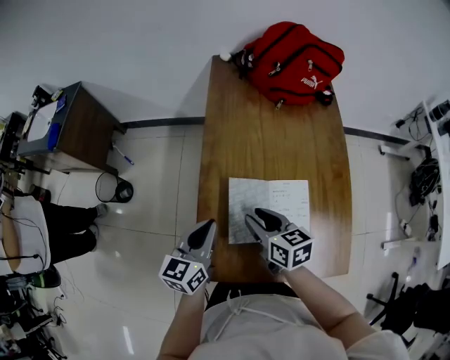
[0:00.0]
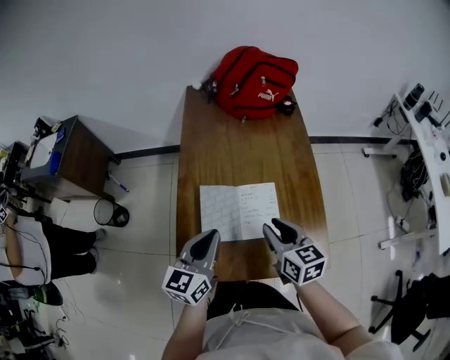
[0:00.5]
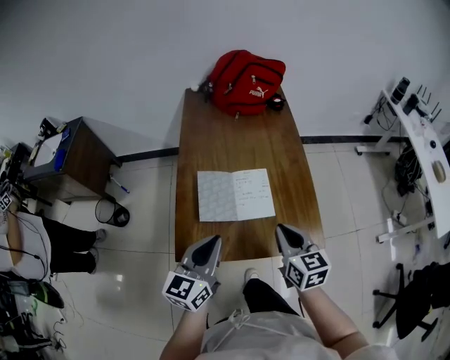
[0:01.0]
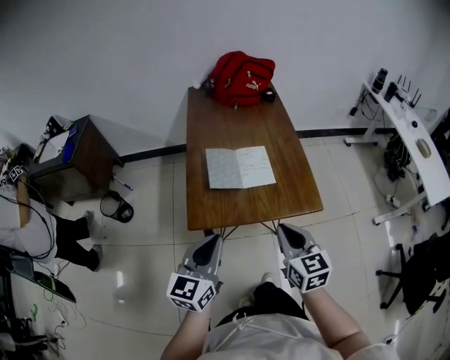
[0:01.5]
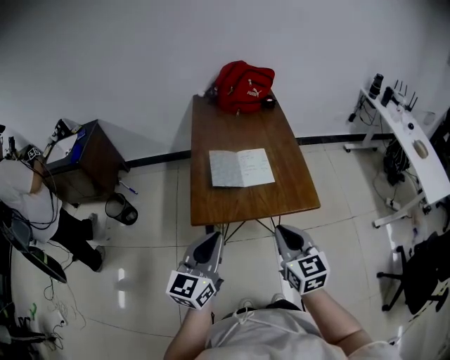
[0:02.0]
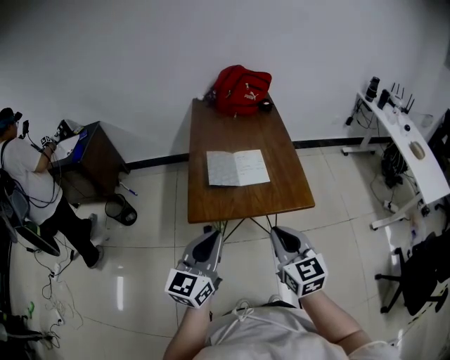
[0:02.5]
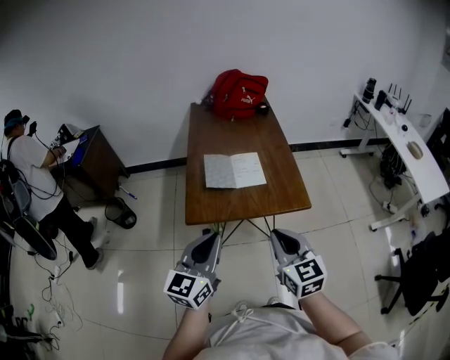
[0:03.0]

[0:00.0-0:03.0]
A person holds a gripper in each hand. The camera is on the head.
0:00.0 to 0:01.5: The left gripper is displaced backward by approximately 30 cm, while the right gripper heads backward and to the right, covering some 35 cm, swivels roughly 30 degrees, and closes.
0:01.5 to 0:03.0: Both grippers move backward, some 10 cm.

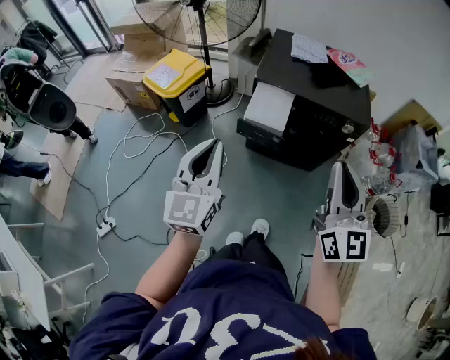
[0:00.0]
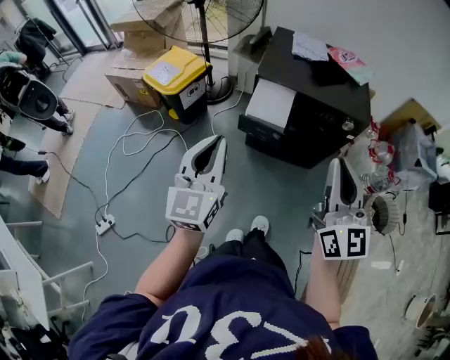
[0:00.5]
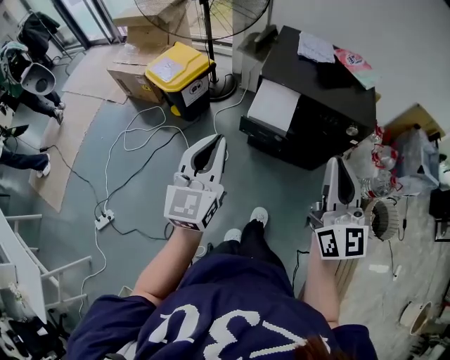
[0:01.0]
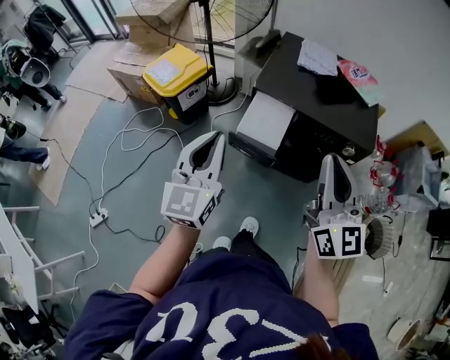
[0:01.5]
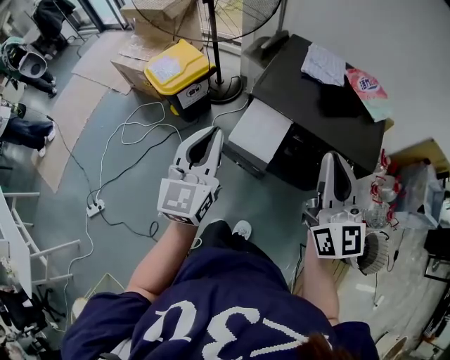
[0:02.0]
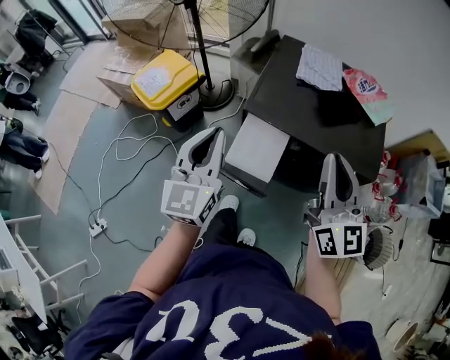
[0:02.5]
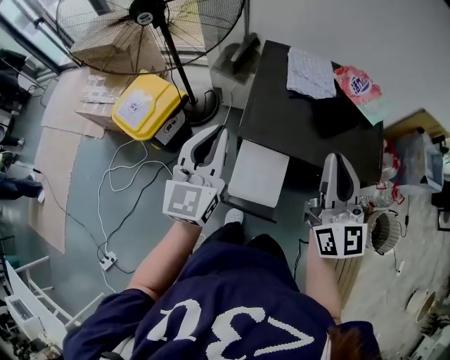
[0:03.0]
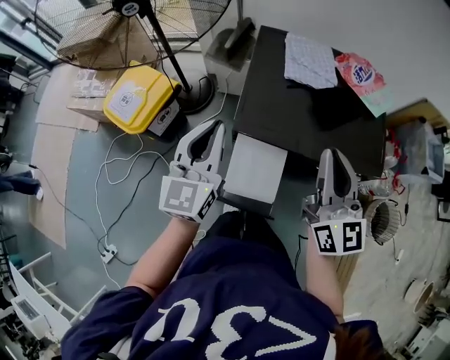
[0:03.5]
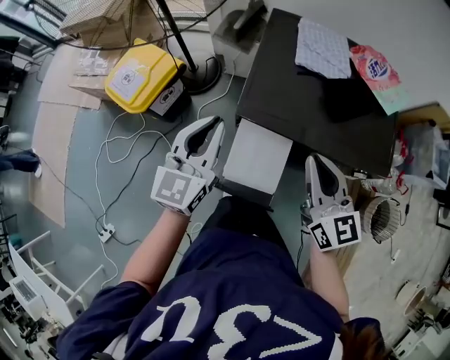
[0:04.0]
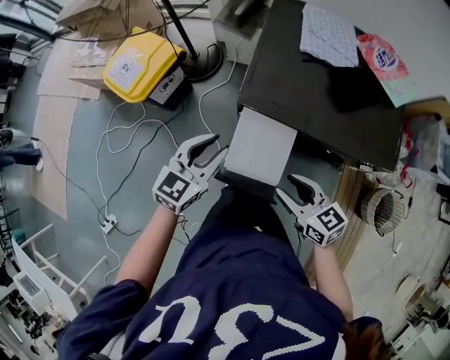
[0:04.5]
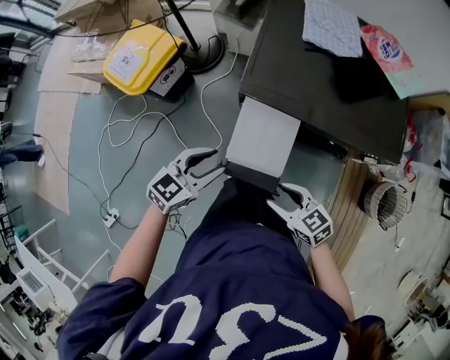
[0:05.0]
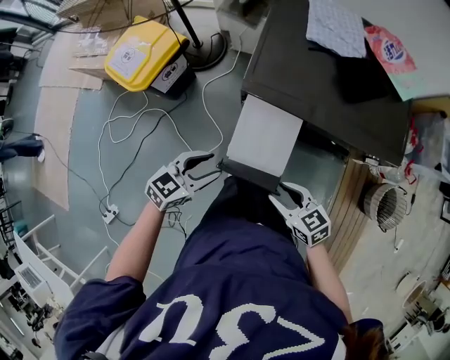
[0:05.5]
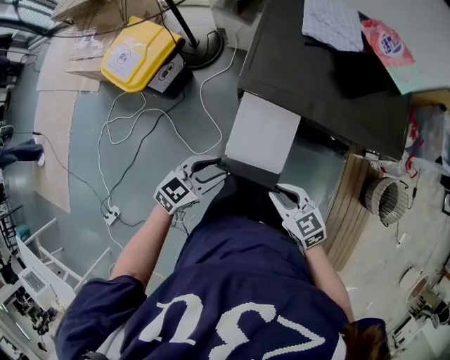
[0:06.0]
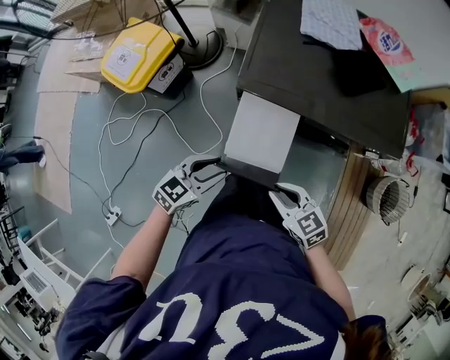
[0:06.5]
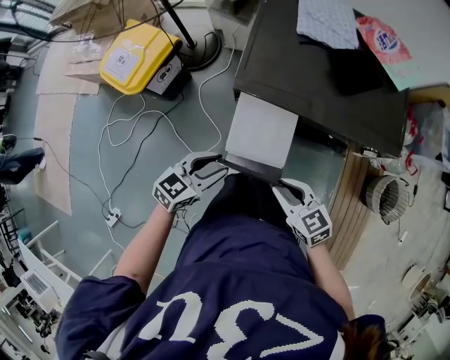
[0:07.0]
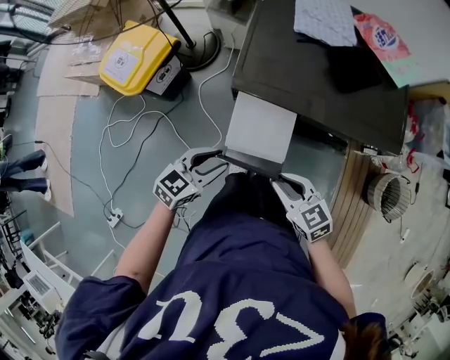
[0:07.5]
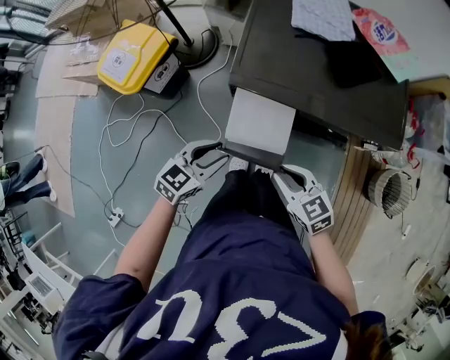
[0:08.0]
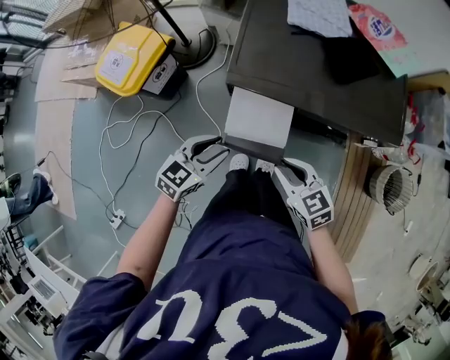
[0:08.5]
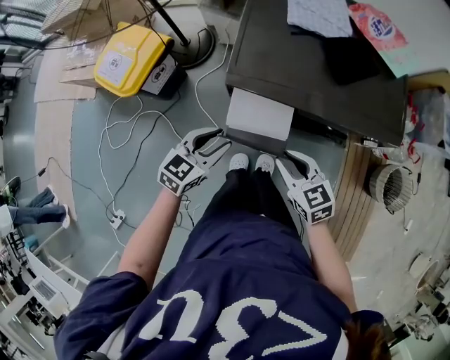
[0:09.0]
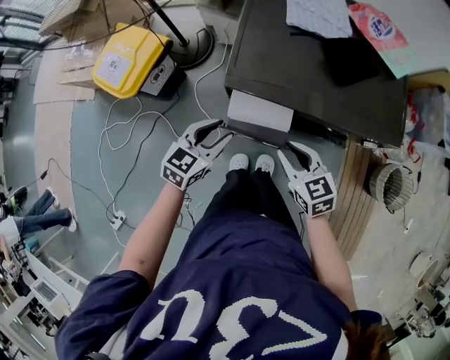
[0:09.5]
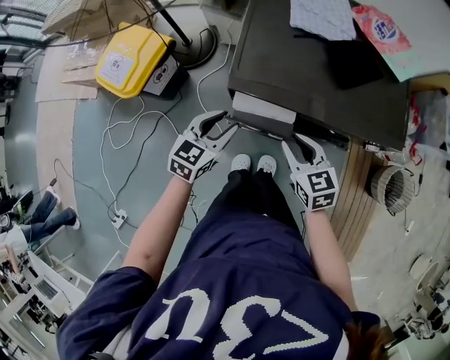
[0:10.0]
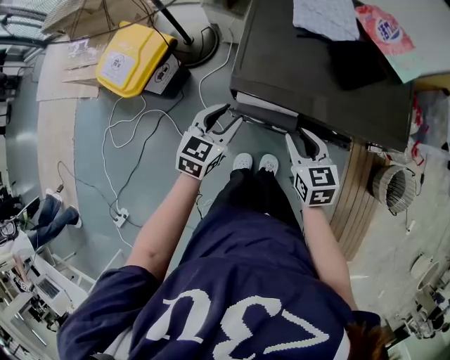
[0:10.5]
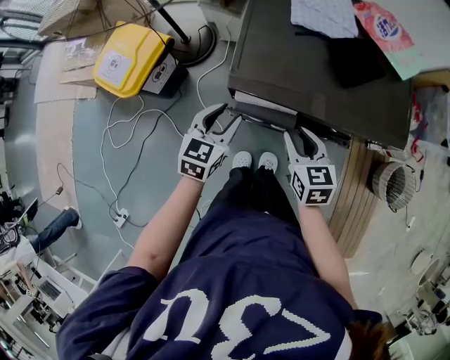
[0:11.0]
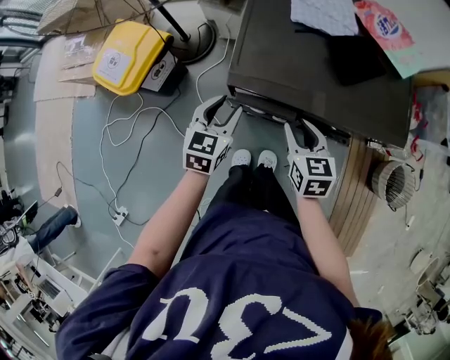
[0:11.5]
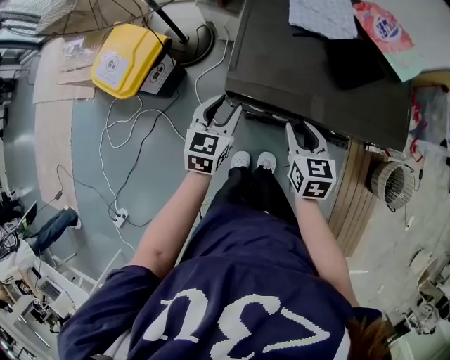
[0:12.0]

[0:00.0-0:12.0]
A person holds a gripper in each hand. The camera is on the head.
0:00.0 to 0:02.0: The right gripper shifts some 25 cm forward. Meanwhile the left gripper moves forward and to the right, roughly 20 cm.
0:02.0 to 0:04.0: The right gripper shifts roughly 25 cm forward and downward. The left gripper is displaced forward by some 25 cm, and changes its angle by some 20 degrees.
0:04.0 to 0:06.0: Both grippers travel together downward and backward, about 25 cm. The left gripper swivels about 40 degrees, and opens up; the right gripper rotates roughly 40 degrees, and opens, then closes again.
0:06.0 to 0:08.0: The right gripper ends up roughly 5 cm from where it was.
0:08.0 to 0:10.0: Both grippers travel together forward, some 10 cm.
0:10.0 to 0:12.0: Both grippers move forward, roughly 5 cm.

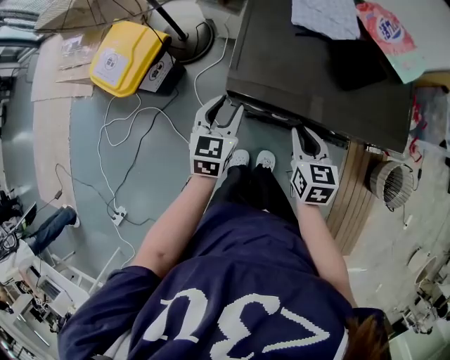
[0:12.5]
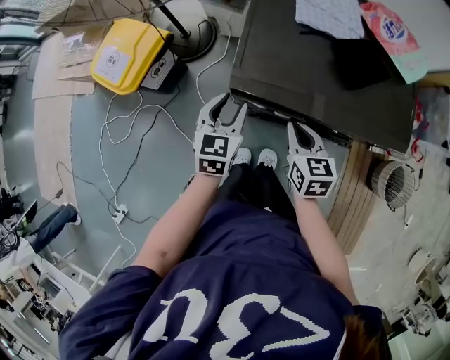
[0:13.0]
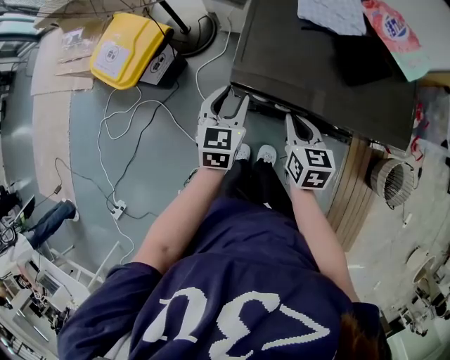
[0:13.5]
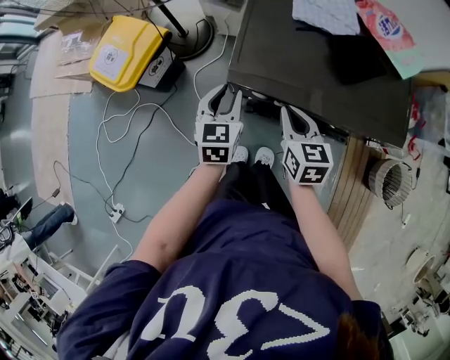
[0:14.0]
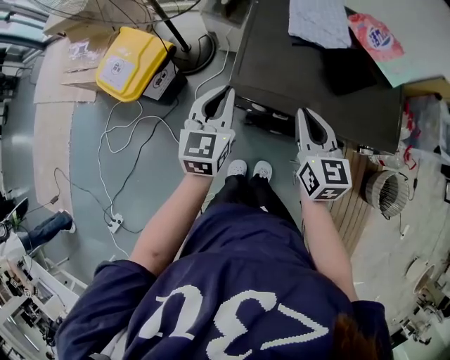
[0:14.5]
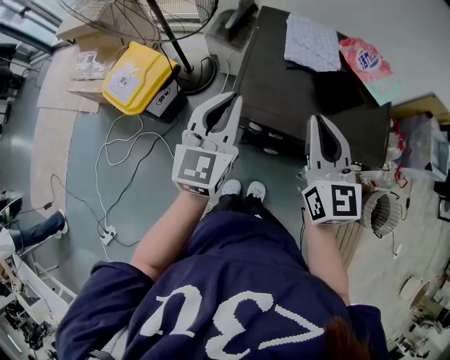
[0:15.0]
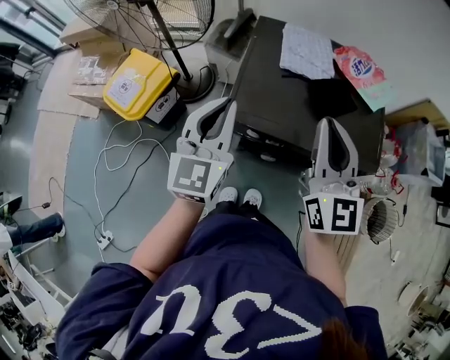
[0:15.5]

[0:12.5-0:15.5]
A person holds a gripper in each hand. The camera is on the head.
0:12.5 to 0:14.0: The right gripper shifts by about 5 cm.
0:14.0 to 0:15.5: The two grippers go roughly 30 cm upward. The right gripper tilts its fingers about 40 degrees upward; the left gripper turns by about 30 degrees, and closes its fingers.

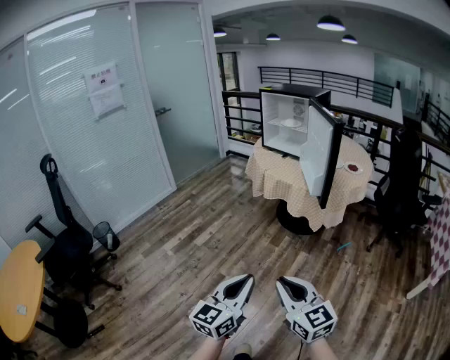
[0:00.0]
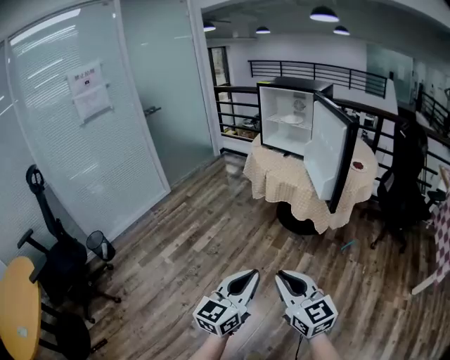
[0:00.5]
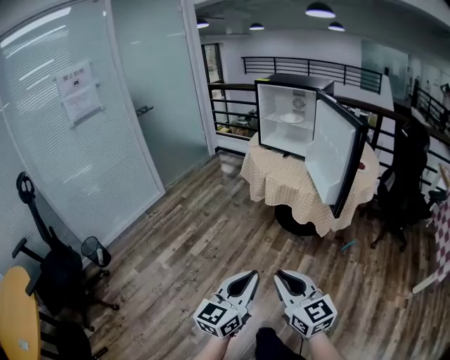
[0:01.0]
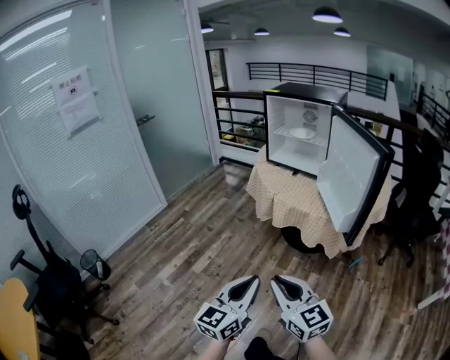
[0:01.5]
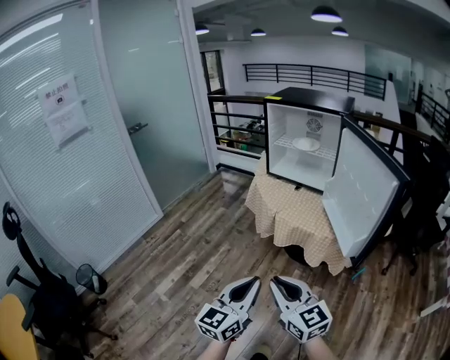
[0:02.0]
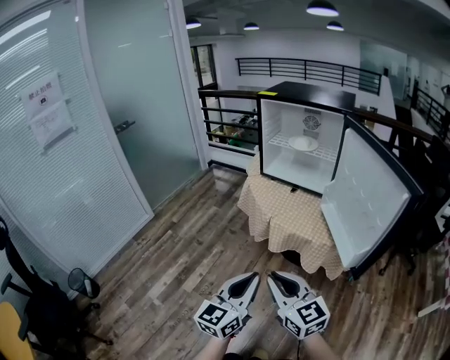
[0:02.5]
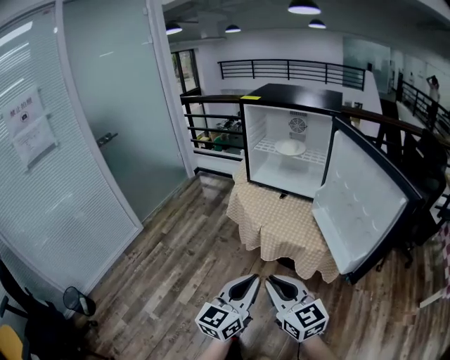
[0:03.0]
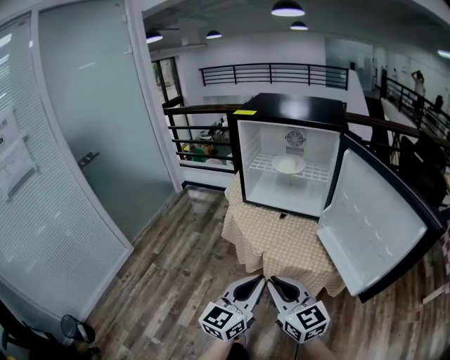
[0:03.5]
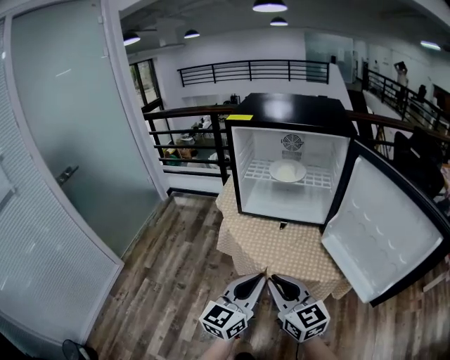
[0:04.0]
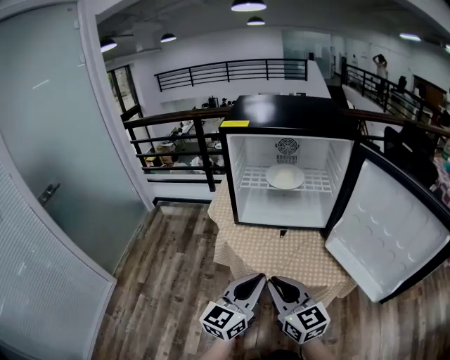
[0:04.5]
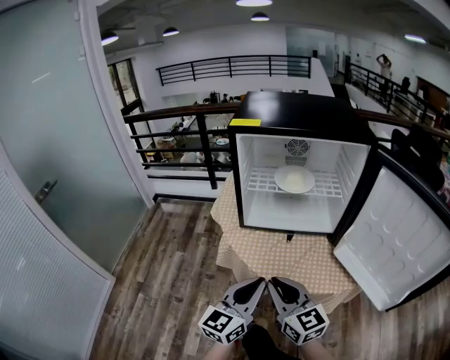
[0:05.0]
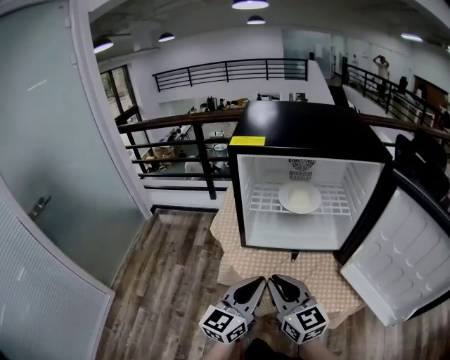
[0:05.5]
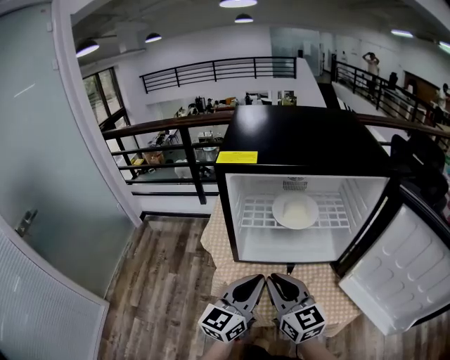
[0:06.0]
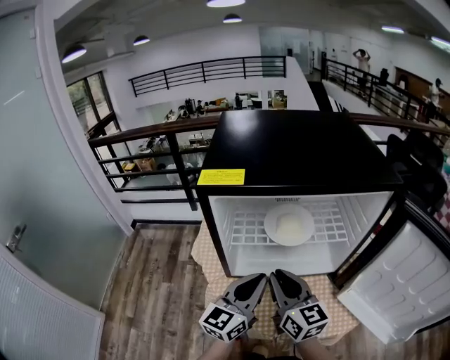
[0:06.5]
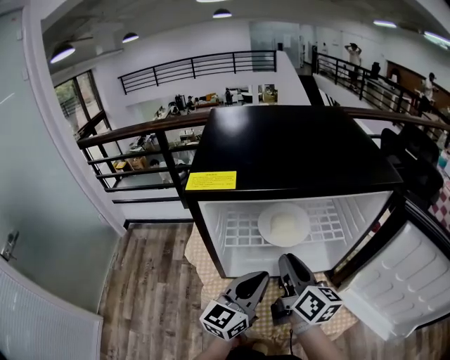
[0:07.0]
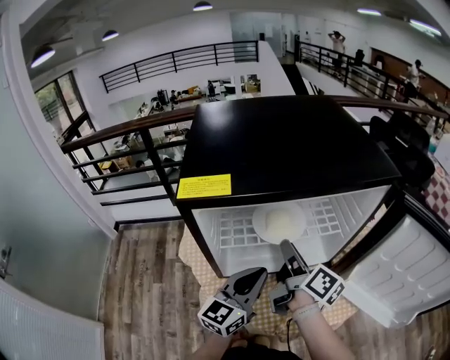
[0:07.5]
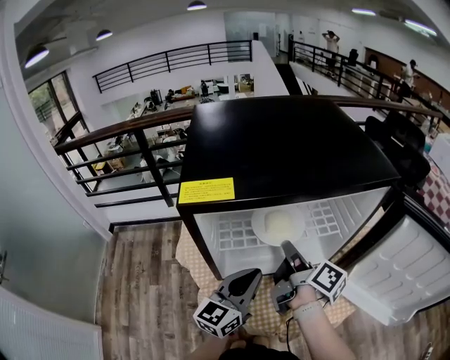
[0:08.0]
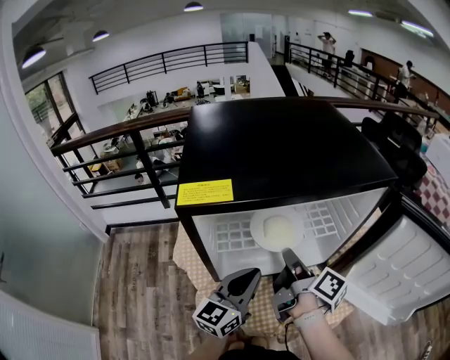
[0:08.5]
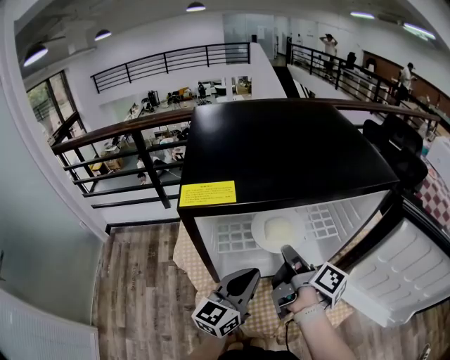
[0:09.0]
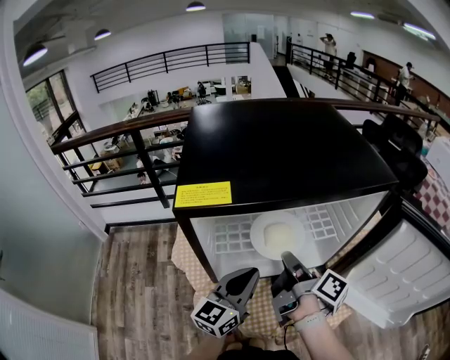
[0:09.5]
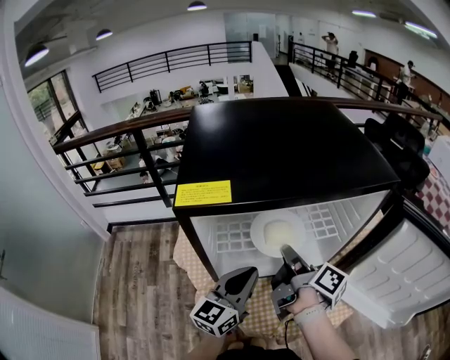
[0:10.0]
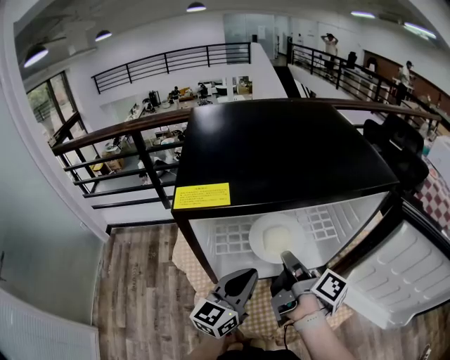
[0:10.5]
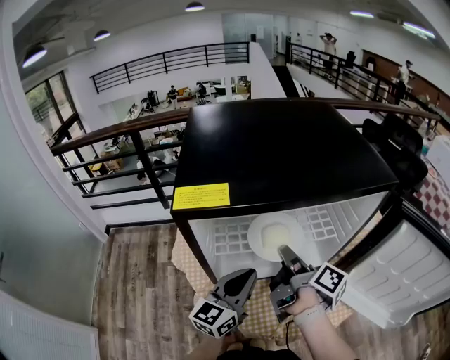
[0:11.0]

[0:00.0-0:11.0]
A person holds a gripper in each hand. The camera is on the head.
0:00.0 to 0:02.0: The pair of grippers is taken forward, roughly 40 cm.
0:02.0 to 0:03.5: The two grippers go about 25 cm forward.
0:03.5 to 0:05.5: The grippers both shift forward and to the left by some 25 cm.
0:05.5 to 0:07.5: Both grippers travel together forward, some 20 cm. The right gripper rolls clockwise, seen from behind, by roughly 60 degrees.
0:07.5 to 0:09.0: The grippers move only a little.
0:09.0 to 0:11.0: The grippers make only small movements.
